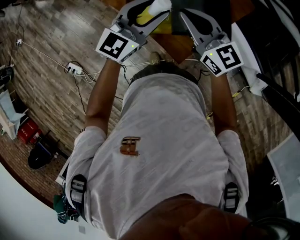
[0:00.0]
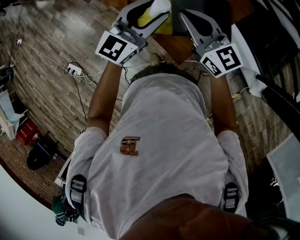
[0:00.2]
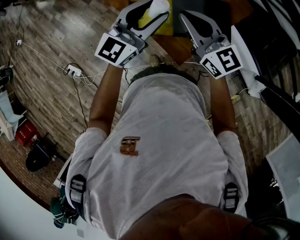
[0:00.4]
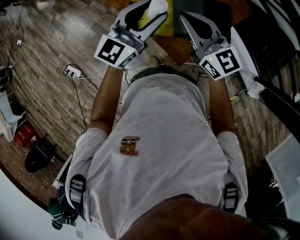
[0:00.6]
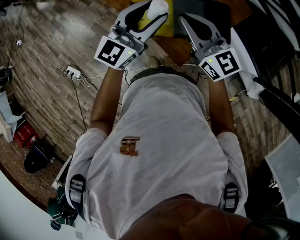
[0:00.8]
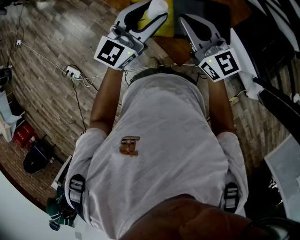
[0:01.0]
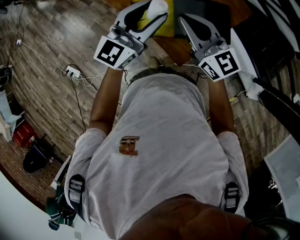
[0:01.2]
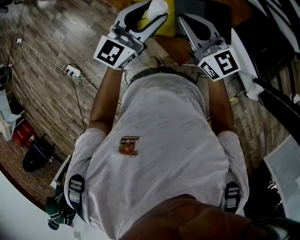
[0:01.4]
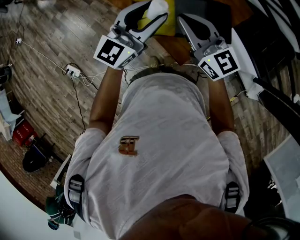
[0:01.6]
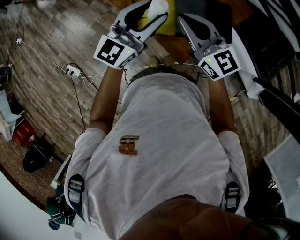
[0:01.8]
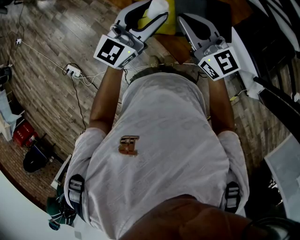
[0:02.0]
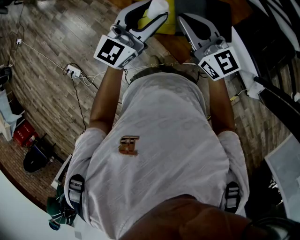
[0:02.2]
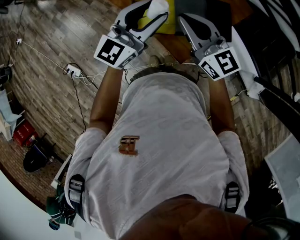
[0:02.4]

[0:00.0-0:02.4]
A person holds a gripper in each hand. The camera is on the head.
0:00.0 to 0:01.2: The left gripper changes place by some 5 cm.
0:01.2 to 0:02.4: The two grippers keep their place.

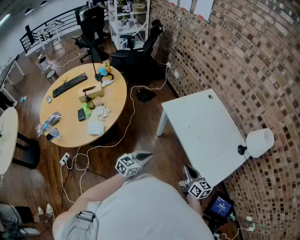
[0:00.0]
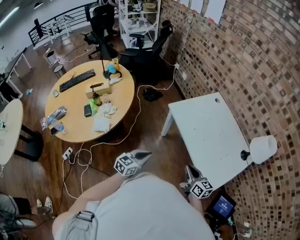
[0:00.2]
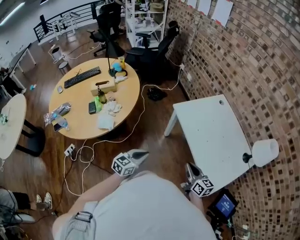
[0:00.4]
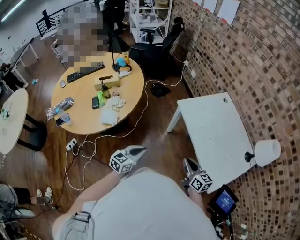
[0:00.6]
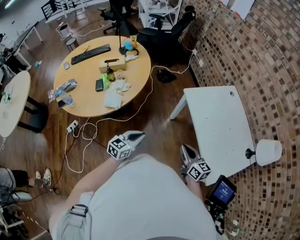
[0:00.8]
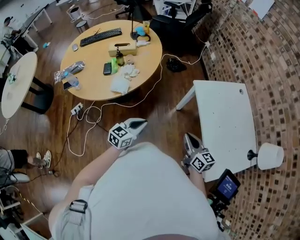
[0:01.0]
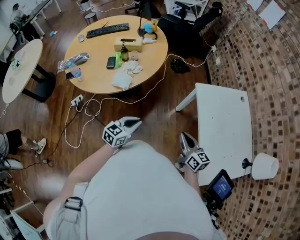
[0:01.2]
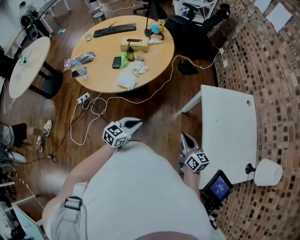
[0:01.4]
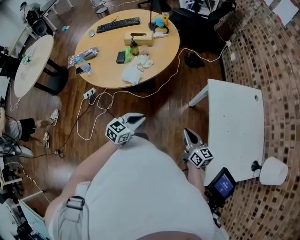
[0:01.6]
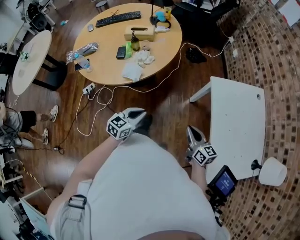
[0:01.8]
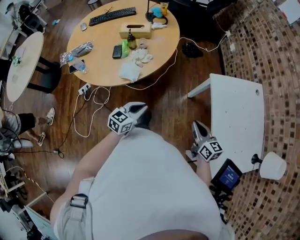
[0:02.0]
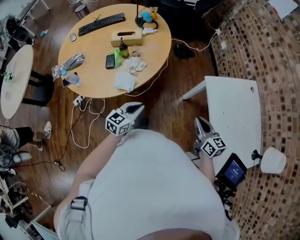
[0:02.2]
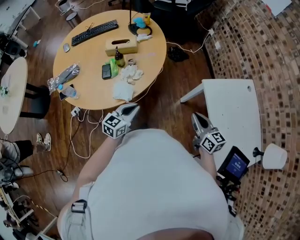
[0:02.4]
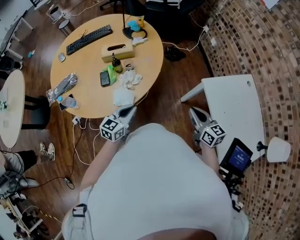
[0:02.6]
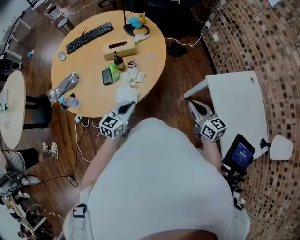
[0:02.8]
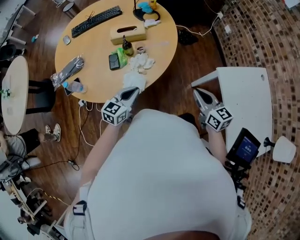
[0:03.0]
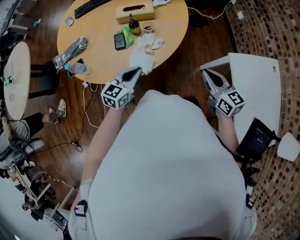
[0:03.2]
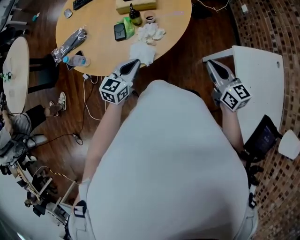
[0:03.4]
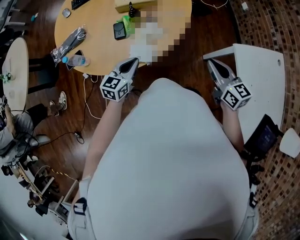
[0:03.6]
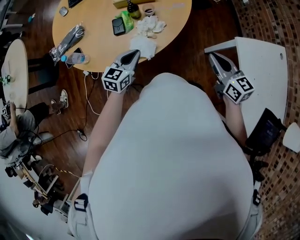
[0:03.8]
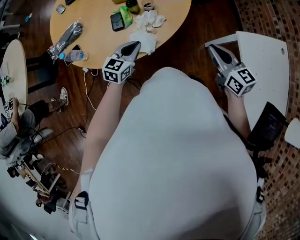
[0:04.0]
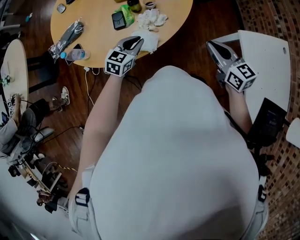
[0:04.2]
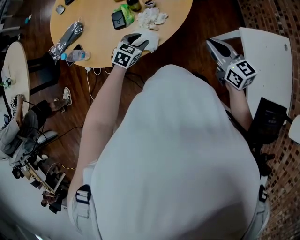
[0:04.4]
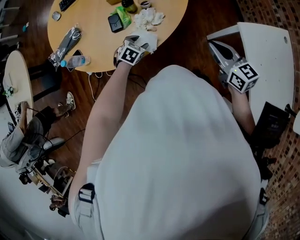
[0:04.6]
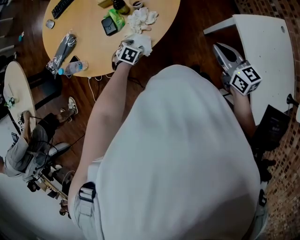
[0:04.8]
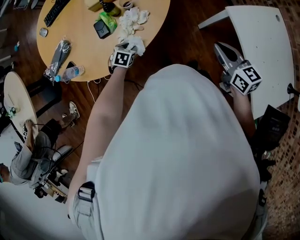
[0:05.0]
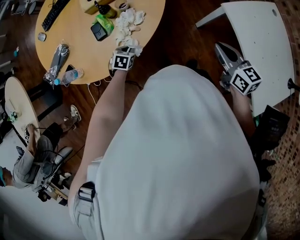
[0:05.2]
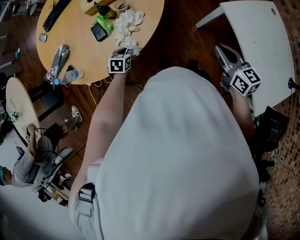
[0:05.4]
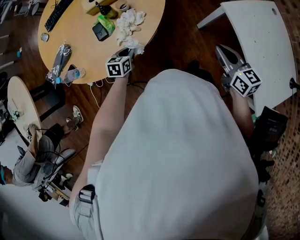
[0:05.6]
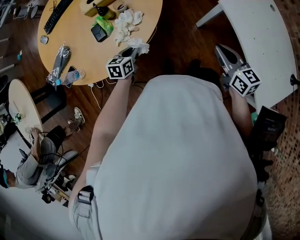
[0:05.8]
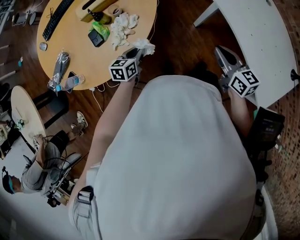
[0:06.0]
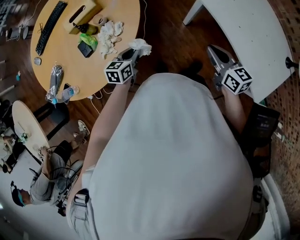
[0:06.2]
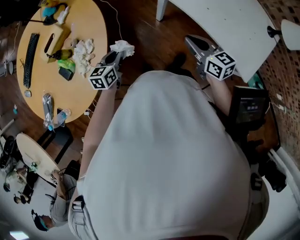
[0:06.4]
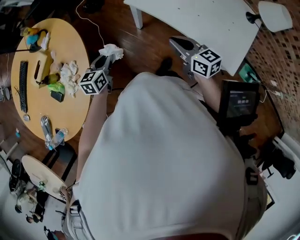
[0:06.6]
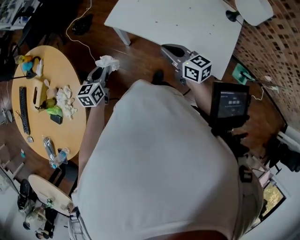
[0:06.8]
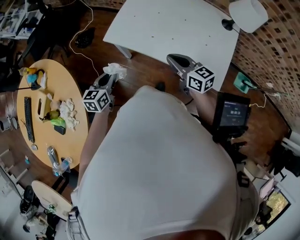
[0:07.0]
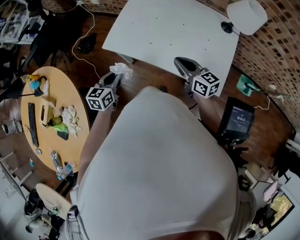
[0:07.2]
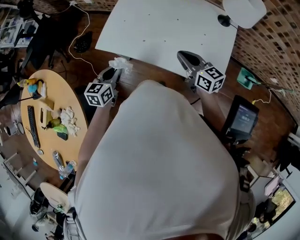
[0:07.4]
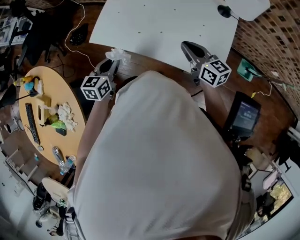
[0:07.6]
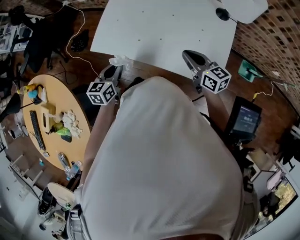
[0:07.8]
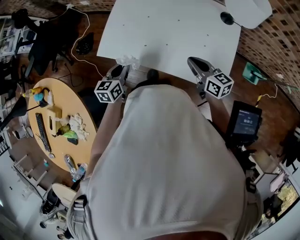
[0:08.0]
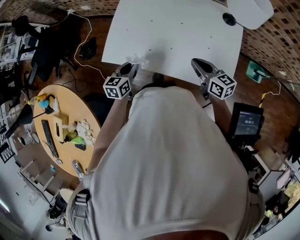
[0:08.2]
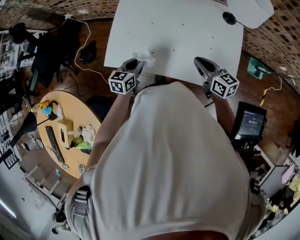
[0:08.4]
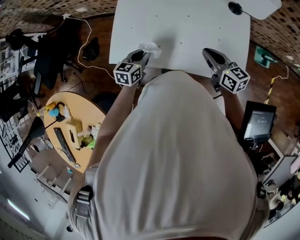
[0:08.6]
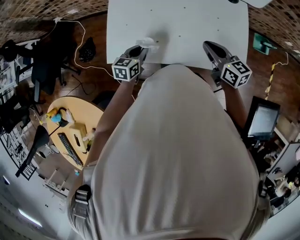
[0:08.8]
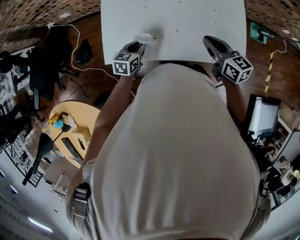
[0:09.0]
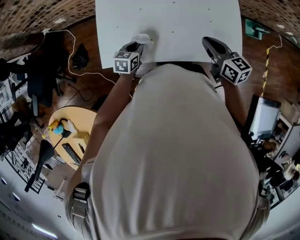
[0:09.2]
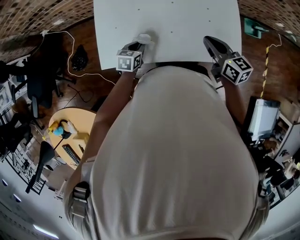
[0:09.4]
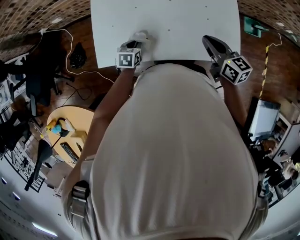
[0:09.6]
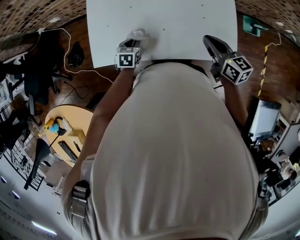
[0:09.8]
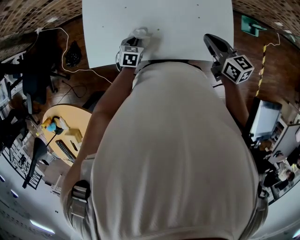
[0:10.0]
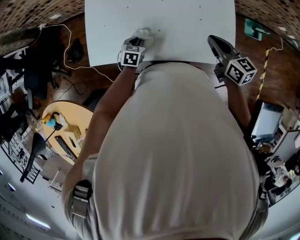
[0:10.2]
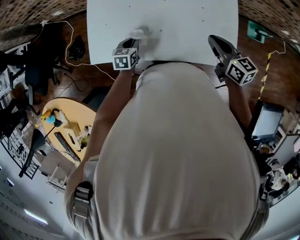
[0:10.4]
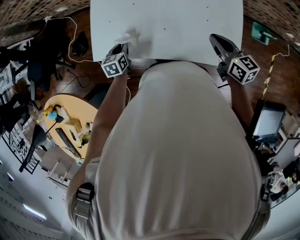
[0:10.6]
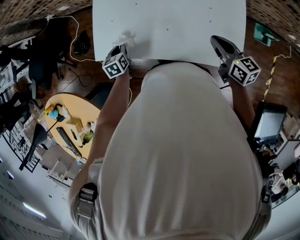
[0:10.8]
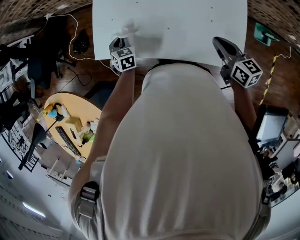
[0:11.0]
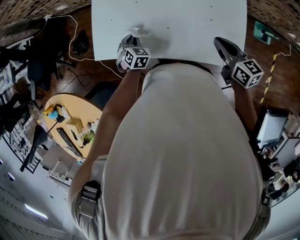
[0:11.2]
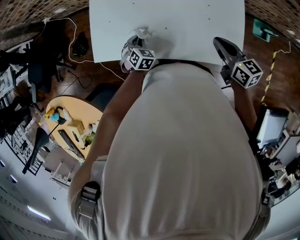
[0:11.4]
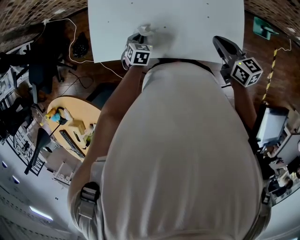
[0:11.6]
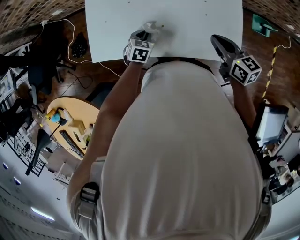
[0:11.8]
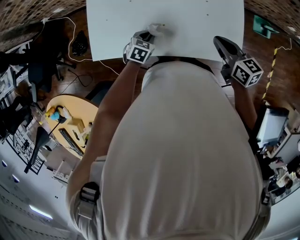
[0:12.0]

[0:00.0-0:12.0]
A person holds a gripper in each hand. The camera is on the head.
0:00.0 to 0:01.6: The left gripper moves approximately 15 cm, and changes its angle by about 30 degrees. Meanwhile the right gripper ends up approximately 15 cm from where it was, and rotates roughly 30 degrees.
0:01.6 to 0:03.0: Both grippers travel together forward and to the left, approximately 25 cm.
0:03.0 to 0:04.4: The left gripper is displaced downward and forward by approximately 15 cm, changes its angle by about 30 degrees, and opens up. The right gripper travels to the left and forward by approximately 5 cm.
0:04.4 to 0:06.0: The left gripper moves to the right, about 10 cm, changes its angle by roughly 20 degrees, and closes; the right gripper moves to the right and backward, roughly 15 cm, and rotates approximately 30 degrees.
0:06.0 to 0:07.6: The two grippers travel together, some 40 cm. The right gripper changes its angle by about 30 degrees, while the left gripper swivels some 40 degrees.
0:07.6 to 0:09.0: The right gripper changes its angle by roughly 20 degrees; the left gripper travels forward and downward by about 20 cm, and turns by some 30 degrees.
0:09.0 to 0:10.4: The right gripper shifts approximately 10 cm to the right.
0:10.4 to 0:12.0: The left gripper changes its angle by about 20 degrees.

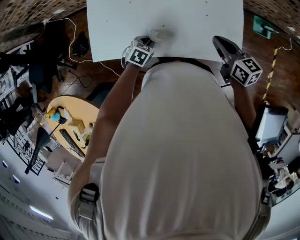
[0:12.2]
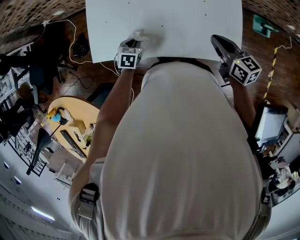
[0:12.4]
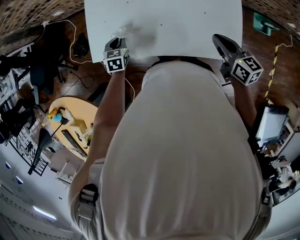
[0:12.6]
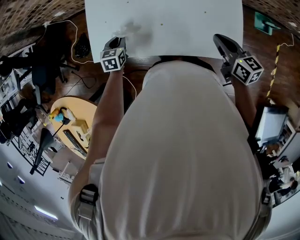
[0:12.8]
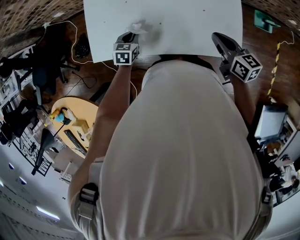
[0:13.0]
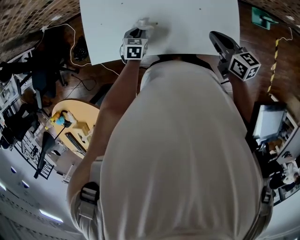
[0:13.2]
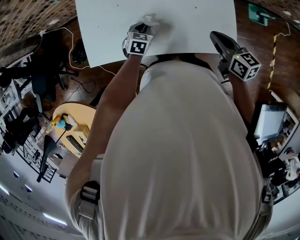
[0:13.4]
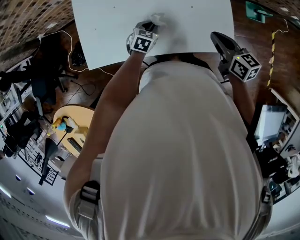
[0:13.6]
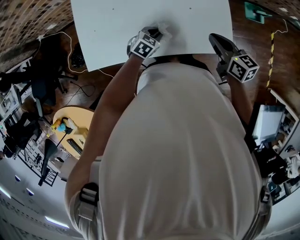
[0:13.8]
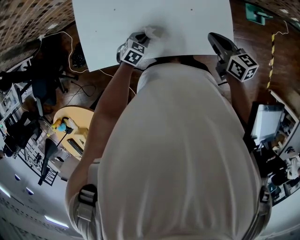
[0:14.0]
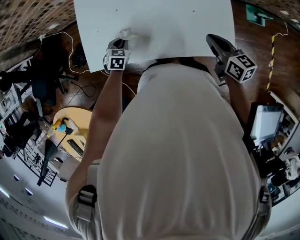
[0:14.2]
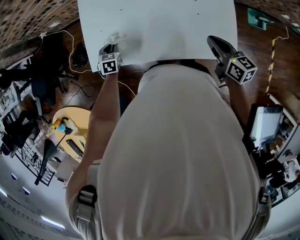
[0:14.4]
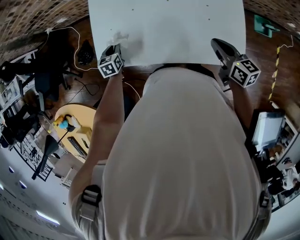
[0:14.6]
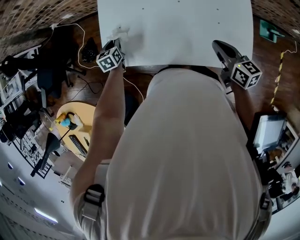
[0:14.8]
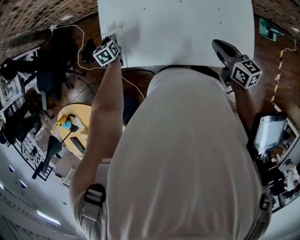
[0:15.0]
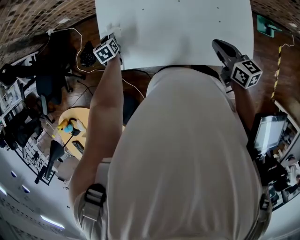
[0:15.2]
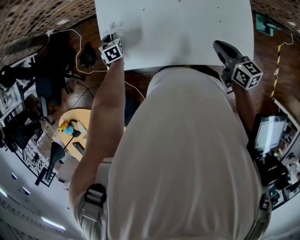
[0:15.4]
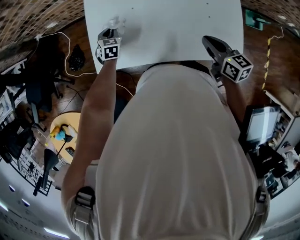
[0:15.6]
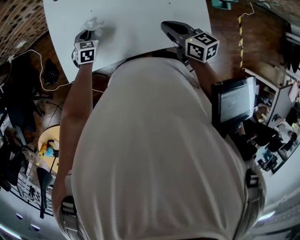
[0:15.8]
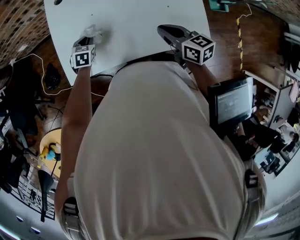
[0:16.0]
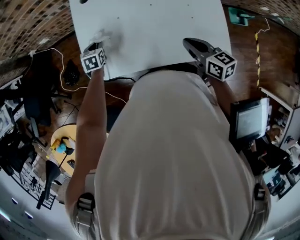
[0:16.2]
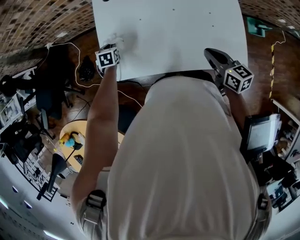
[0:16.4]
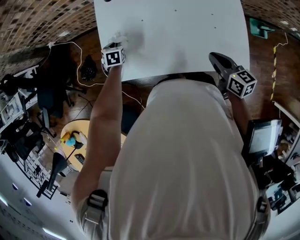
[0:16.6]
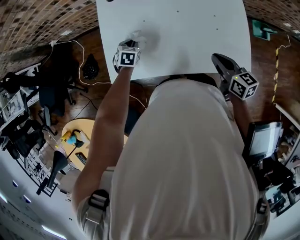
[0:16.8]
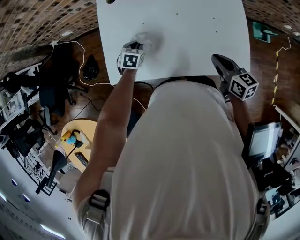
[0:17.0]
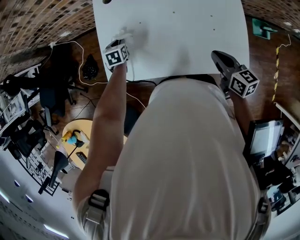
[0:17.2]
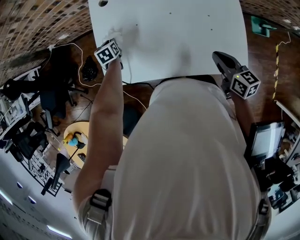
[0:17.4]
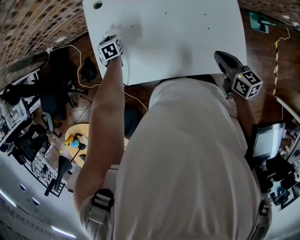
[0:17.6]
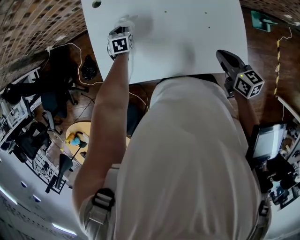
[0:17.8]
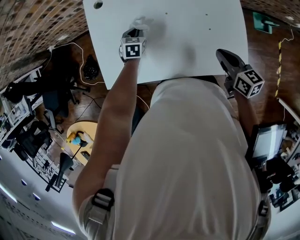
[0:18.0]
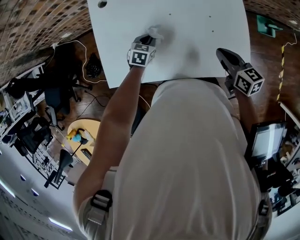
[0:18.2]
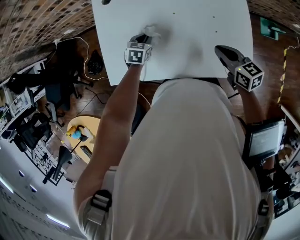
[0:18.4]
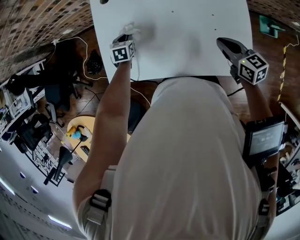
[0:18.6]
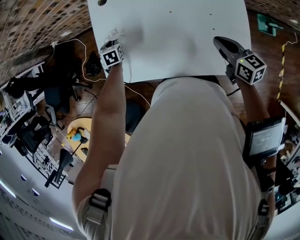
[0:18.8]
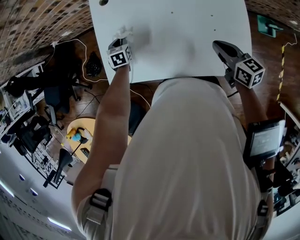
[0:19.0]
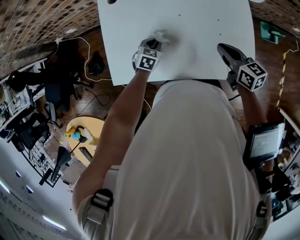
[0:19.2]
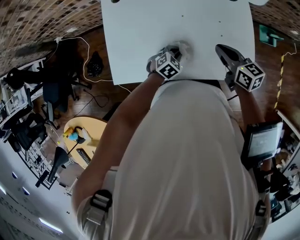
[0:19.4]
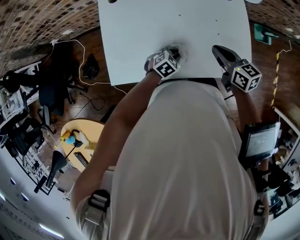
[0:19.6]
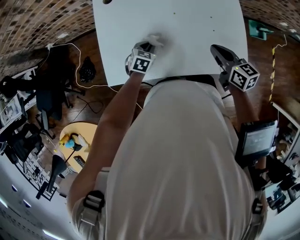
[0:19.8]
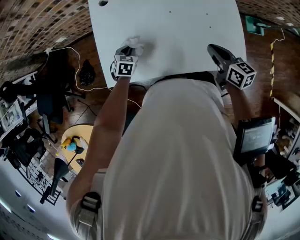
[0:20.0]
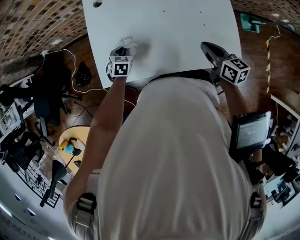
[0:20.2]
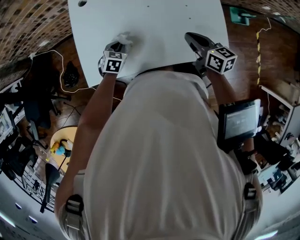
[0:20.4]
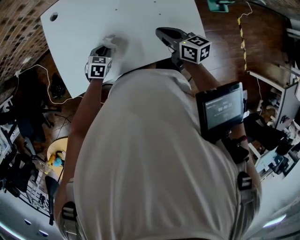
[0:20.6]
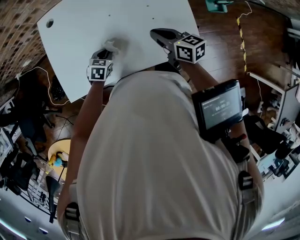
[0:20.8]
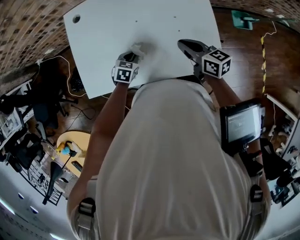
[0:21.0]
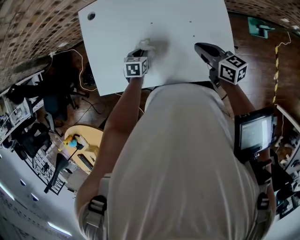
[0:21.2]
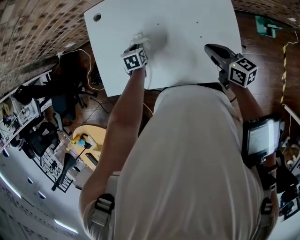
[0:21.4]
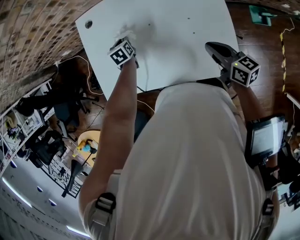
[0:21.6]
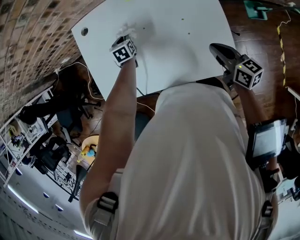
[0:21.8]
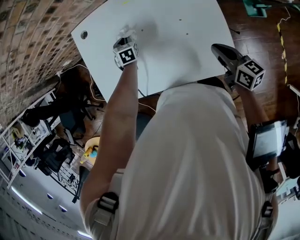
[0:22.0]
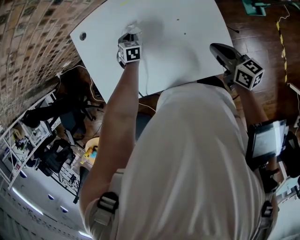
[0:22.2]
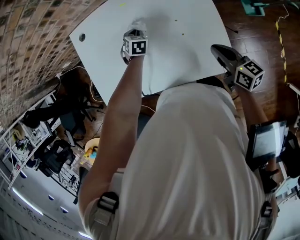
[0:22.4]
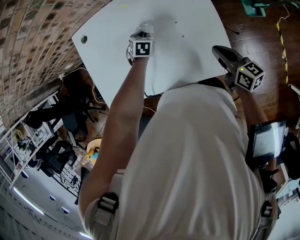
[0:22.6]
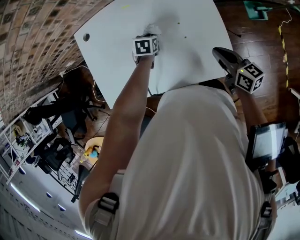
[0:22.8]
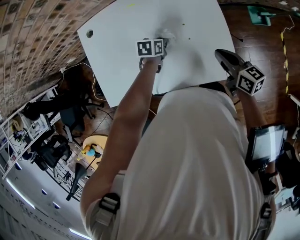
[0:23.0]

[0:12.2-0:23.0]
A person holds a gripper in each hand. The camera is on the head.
0:12.2 to 0:13.8: The left gripper changes place by about 10 cm. The right gripper ends up some 5 cm from where it was.
0:13.8 to 0:15.2: The right gripper moves about 10 cm. The left gripper shifts by some 40 cm, and swivels about 60 degrees.
0:15.2 to 0:16.8: The left gripper moves left and right over some 15 cm, changing direction 2 times, and turns by approximately 40 degrees.
0:16.8 to 0:18.4: The right gripper travels to the right and forward by roughly 5 cm, while the left gripper swings left and right, about 20 cm each way, with 2 reversals.
0:18.4 to 0:20.0: The right gripper moves approximately 5 cm.
0:20.0 to 0:21.4: The right gripper shifts approximately 10 cm to the right, while the left gripper shifts about 15 cm to the right and forward, and changes its angle by roughly 30 degrees.
0:21.4 to 0:23.0: The left gripper shifts by about 20 cm, and changes its angle by approximately 30 degrees. Meanwhile the right gripper shifts by some 10 cm.
